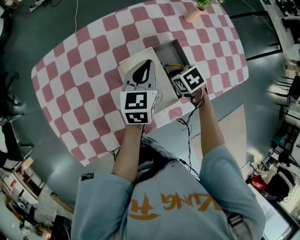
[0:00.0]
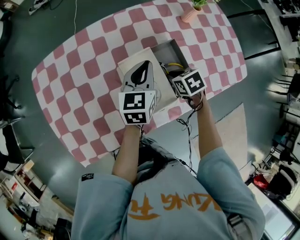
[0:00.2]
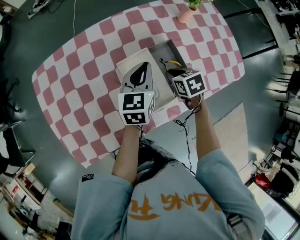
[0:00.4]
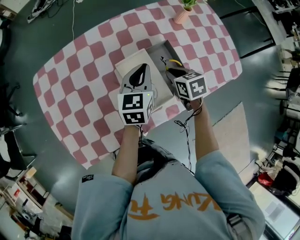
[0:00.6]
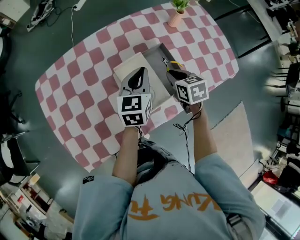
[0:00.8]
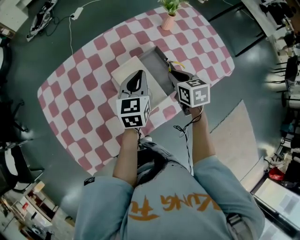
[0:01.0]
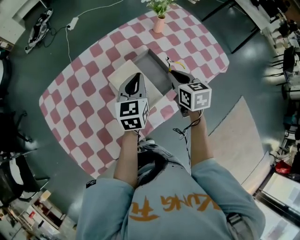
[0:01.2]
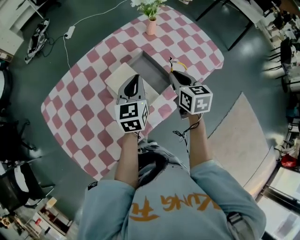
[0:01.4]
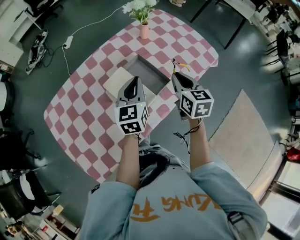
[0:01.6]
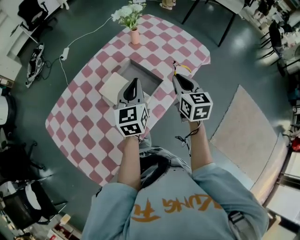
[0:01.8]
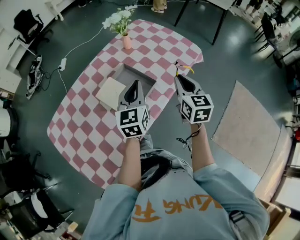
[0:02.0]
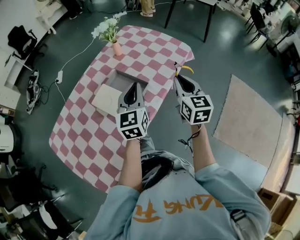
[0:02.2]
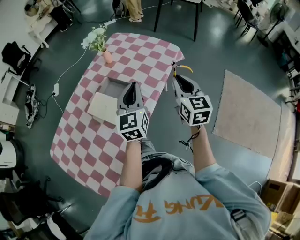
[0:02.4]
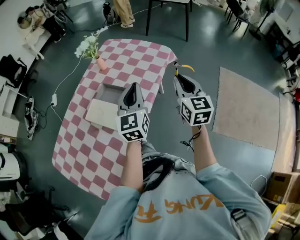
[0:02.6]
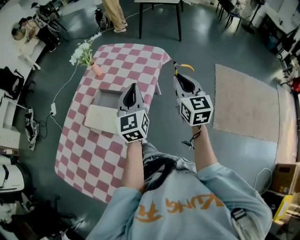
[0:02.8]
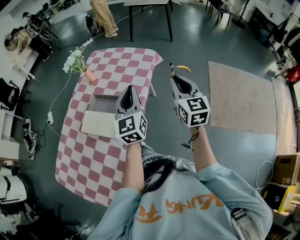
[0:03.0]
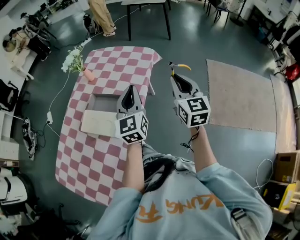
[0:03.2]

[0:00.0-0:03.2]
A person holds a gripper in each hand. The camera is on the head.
0:00.0 to 0:01.6: The right gripper goes some 20 cm upward, and points its fingers some 40 degrees further upward; the left gripper changes place by approximately 15 cm.
0:01.6 to 0:03.2: The right gripper changes place by about 30 cm, and changes its angle by about 40 degrees. The left gripper shifts by some 25 cm, and turns by about 30 degrees.

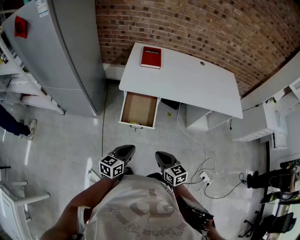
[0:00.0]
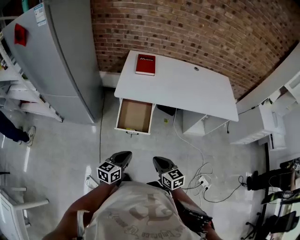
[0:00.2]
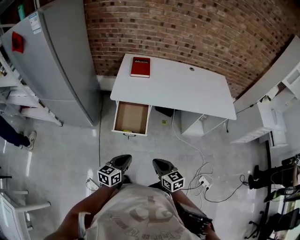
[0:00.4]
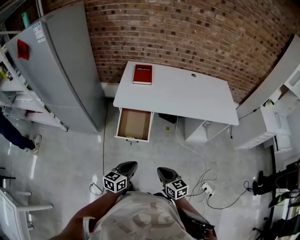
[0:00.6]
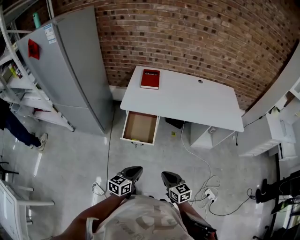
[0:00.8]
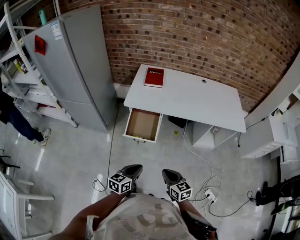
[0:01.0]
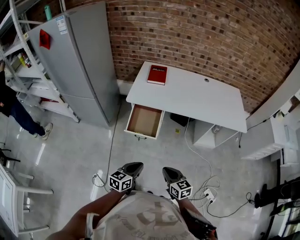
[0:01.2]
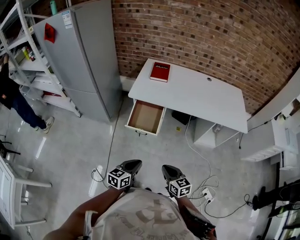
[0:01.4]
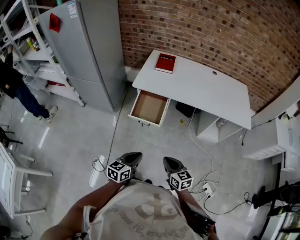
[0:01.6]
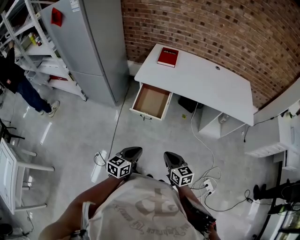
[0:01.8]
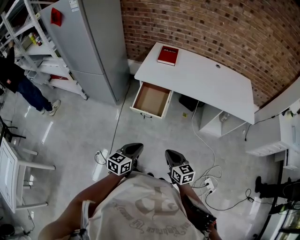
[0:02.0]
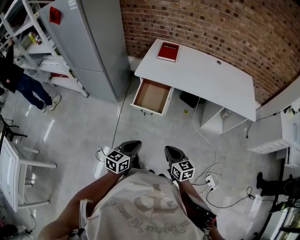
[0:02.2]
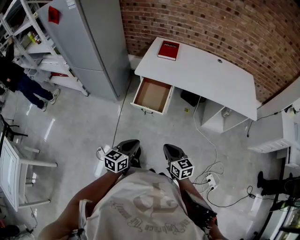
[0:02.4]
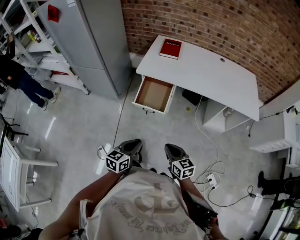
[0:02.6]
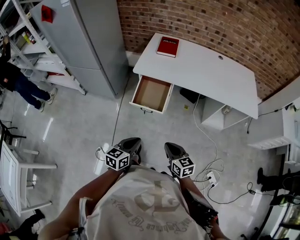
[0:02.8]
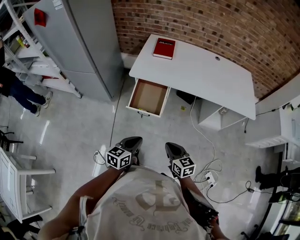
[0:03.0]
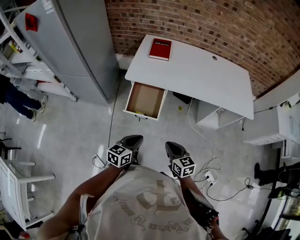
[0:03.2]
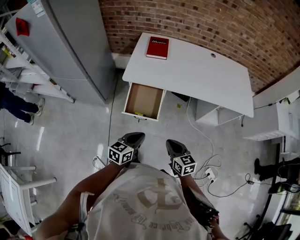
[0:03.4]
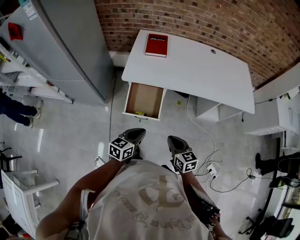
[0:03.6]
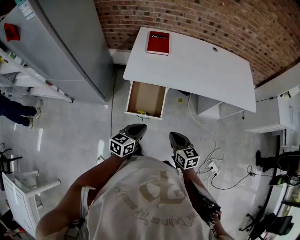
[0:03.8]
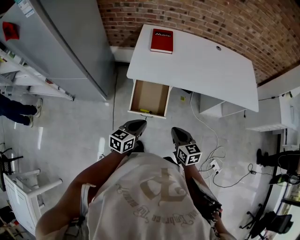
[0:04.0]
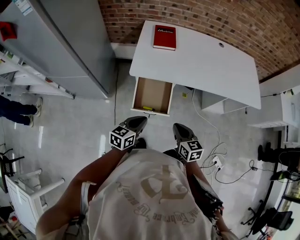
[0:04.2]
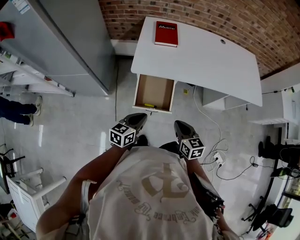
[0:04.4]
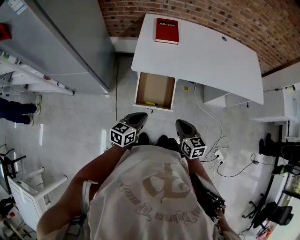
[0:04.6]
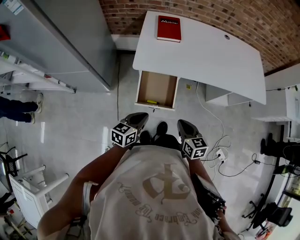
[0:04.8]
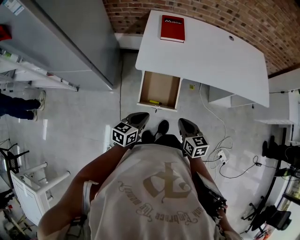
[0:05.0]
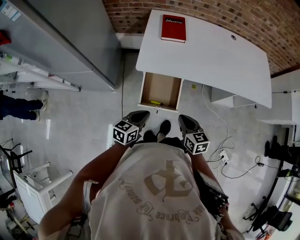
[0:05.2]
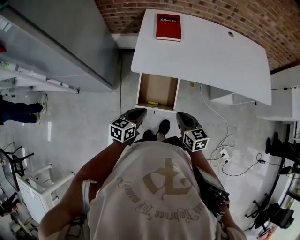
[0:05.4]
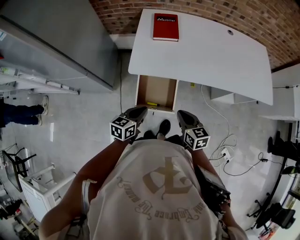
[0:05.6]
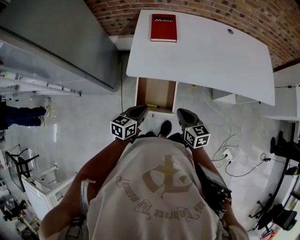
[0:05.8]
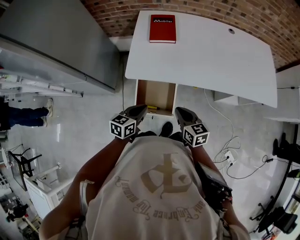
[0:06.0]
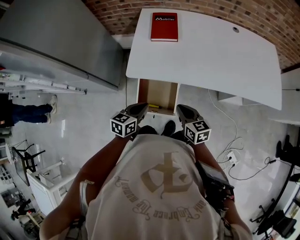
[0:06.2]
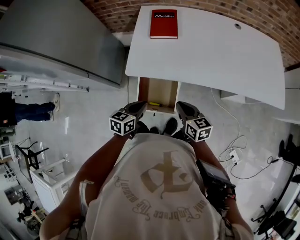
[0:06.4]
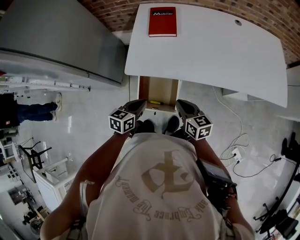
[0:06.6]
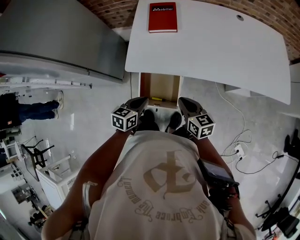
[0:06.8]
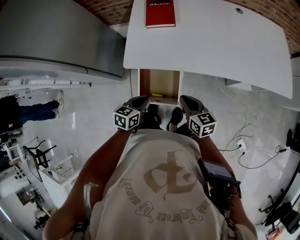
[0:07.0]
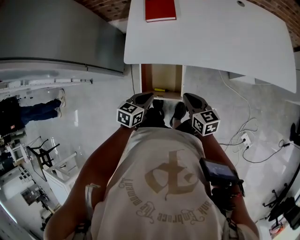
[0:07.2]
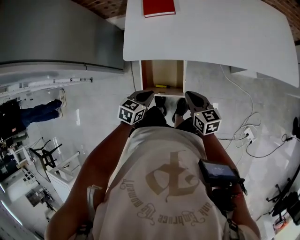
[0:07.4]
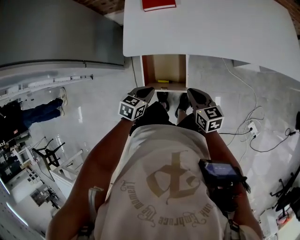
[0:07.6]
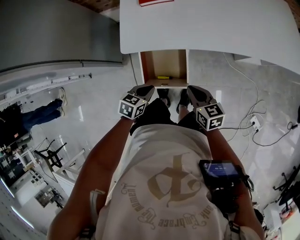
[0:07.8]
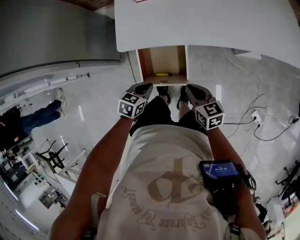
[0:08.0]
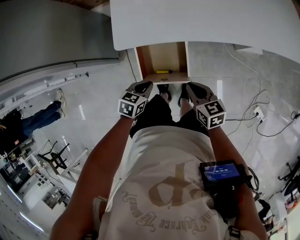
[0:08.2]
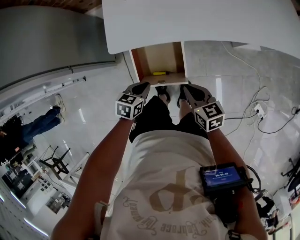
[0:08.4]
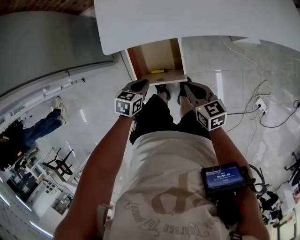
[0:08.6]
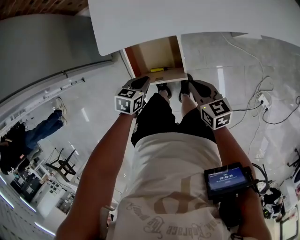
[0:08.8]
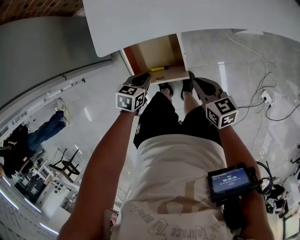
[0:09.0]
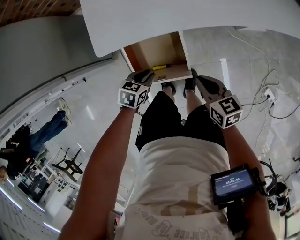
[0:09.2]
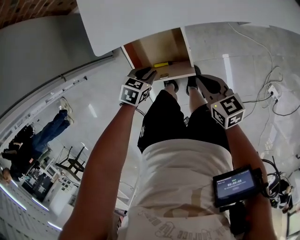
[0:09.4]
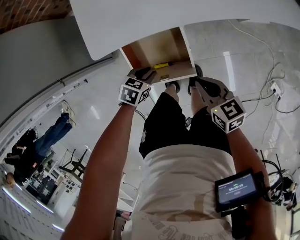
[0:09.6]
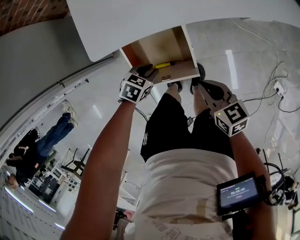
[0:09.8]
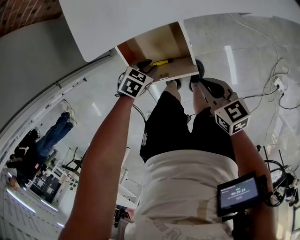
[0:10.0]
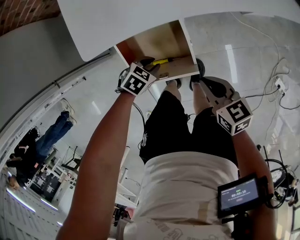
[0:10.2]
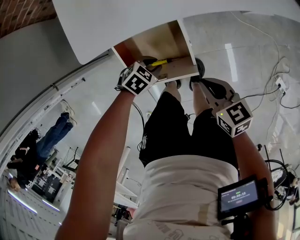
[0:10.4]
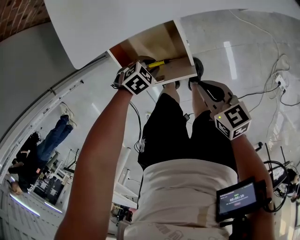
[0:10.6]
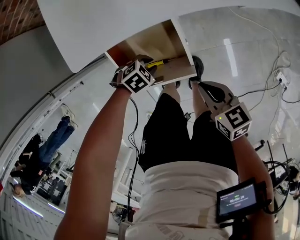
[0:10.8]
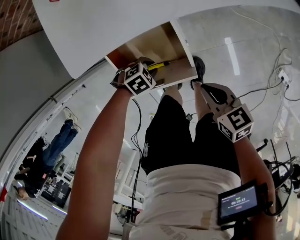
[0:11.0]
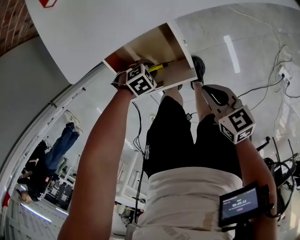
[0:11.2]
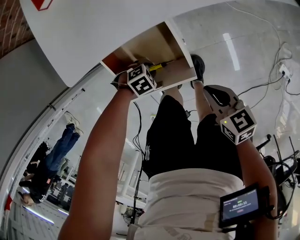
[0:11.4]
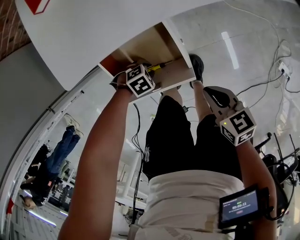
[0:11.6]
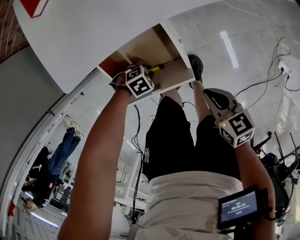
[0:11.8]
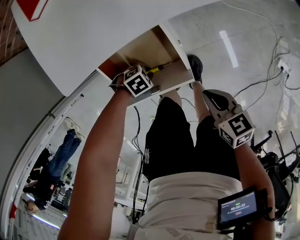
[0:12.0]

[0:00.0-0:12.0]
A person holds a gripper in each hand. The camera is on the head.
0:00.0 to 0:01.6: The right gripper goes about 15 cm to the right and backward, while the left gripper heads backward and to the right, covering about 15 cm.
0:01.6 to 0:03.0: Both grippers move forward, some 5 cm.
0:03.0 to 0:04.4: Both grippers travel together forward and to the left, approximately 20 cm.
0:04.4 to 0:06.0: Both grippers travel together forward, about 15 cm.
0:06.0 to 0:07.6: Both grippers move downward, about 10 cm. The left gripper changes its angle by approximately 20 degrees.
0:07.6 to 0:09.0: The grippers both shift downward by some 10 cm.
0:09.0 to 0:10.4: The right gripper changes place by about 5 cm; the left gripper goes some 10 cm downward, and changes its angle by some 40 degrees.
0:10.4 to 0:12.0: The right gripper moves approximately 5 cm. The left gripper shifts some 10 cm downward, and turns by about 30 degrees.

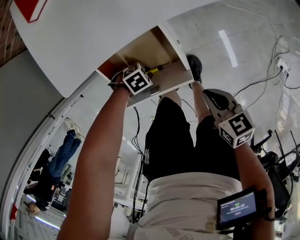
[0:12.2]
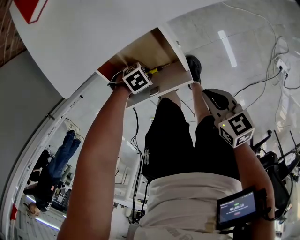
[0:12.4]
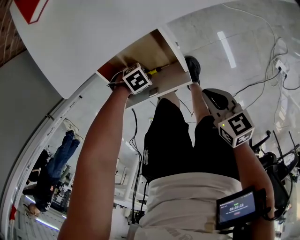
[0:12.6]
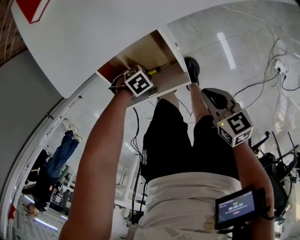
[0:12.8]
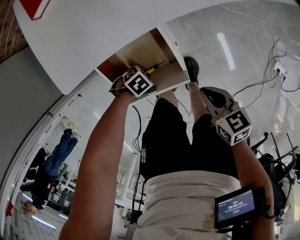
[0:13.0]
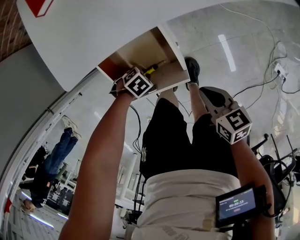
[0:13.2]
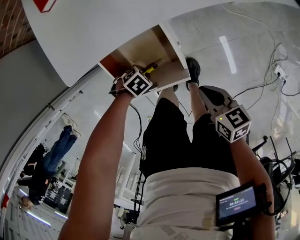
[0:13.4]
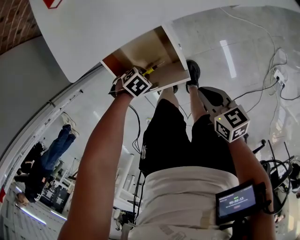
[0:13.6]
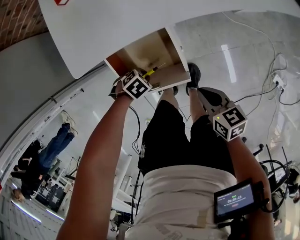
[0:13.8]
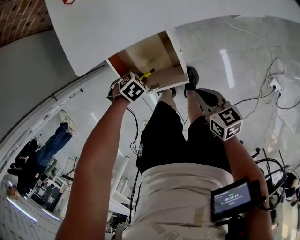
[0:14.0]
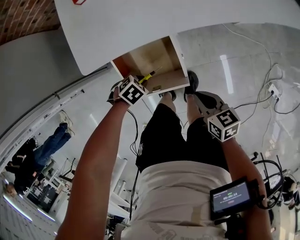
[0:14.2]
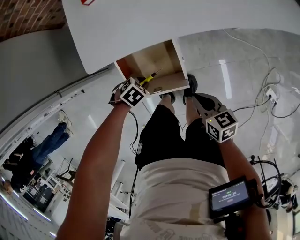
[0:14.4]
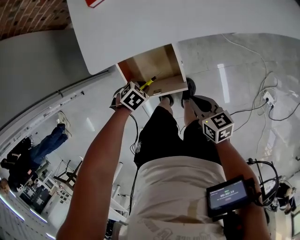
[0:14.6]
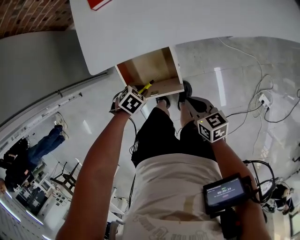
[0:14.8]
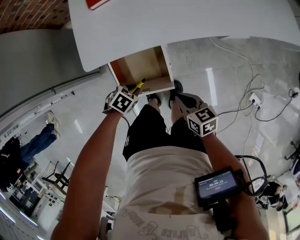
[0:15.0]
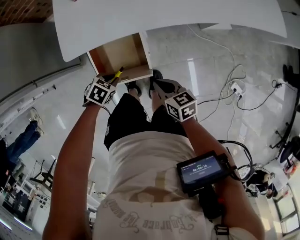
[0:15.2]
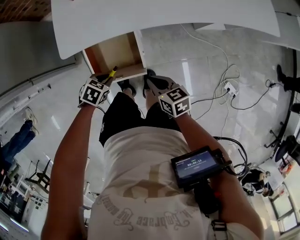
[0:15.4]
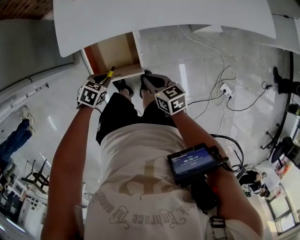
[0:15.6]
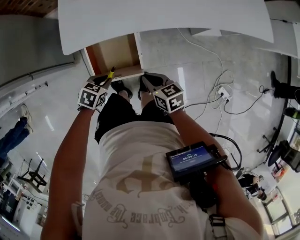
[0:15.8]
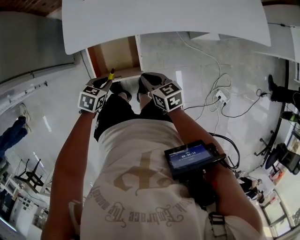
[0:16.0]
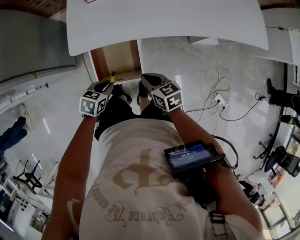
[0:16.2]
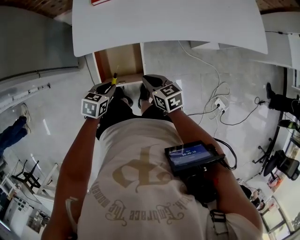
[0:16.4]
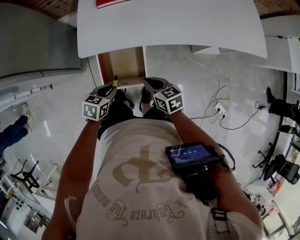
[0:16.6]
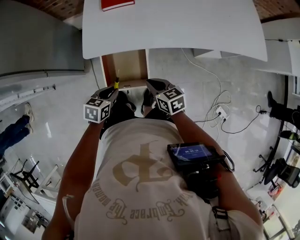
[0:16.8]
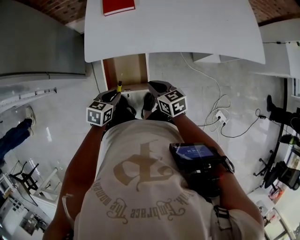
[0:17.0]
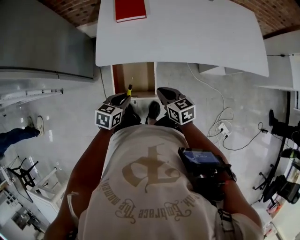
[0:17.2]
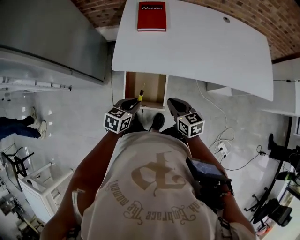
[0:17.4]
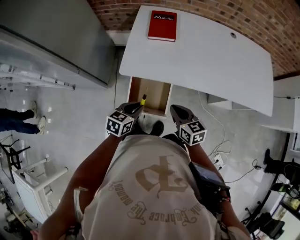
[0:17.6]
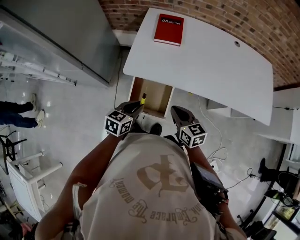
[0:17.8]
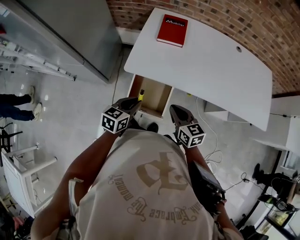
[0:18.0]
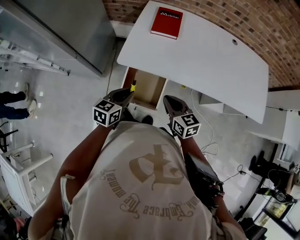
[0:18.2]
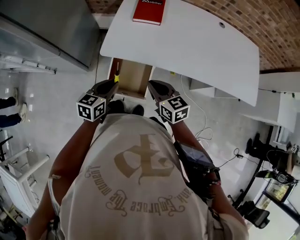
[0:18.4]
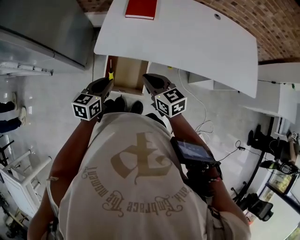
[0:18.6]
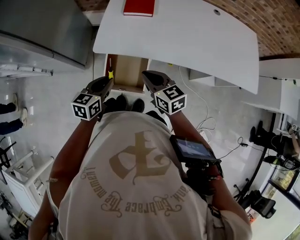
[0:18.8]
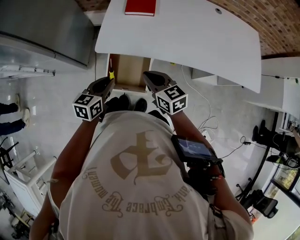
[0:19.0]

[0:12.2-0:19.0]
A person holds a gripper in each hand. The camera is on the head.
0:12.2 to 0:13.6: The grippers make only small movements.
0:13.6 to 0:15.0: The right gripper ends up approximately 5 cm from where it was. Meanwhile the left gripper moves upward, approximately 10 cm, and rotates about 20 degrees.
0:15.0 to 0:16.2: The right gripper goes roughly 5 cm upward. The left gripper travels upward by approximately 10 cm, and rotates about 30 degrees.
0:16.2 to 0:17.6: The two grippers go some 15 cm upward. The left gripper turns by about 20 degrees.
0:17.6 to 0:19.0: The grippers stay close to where they were, moving slightly.

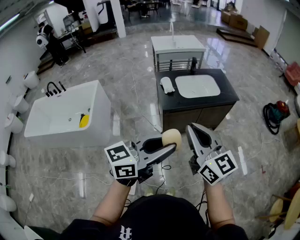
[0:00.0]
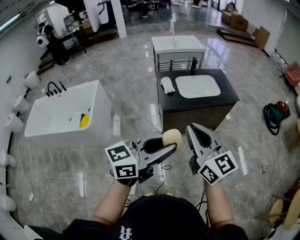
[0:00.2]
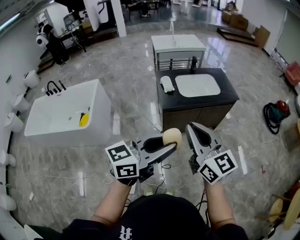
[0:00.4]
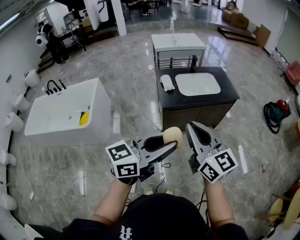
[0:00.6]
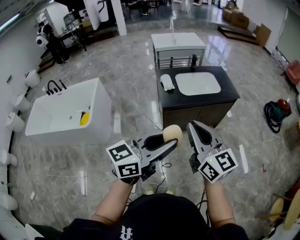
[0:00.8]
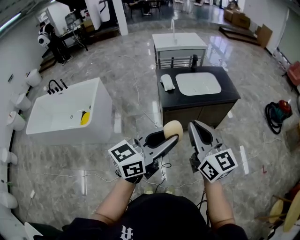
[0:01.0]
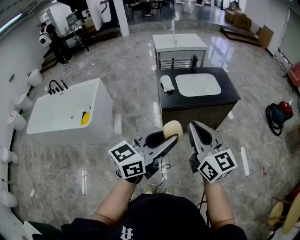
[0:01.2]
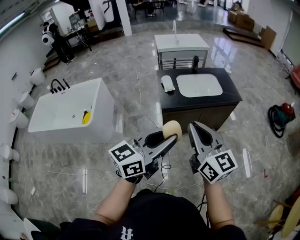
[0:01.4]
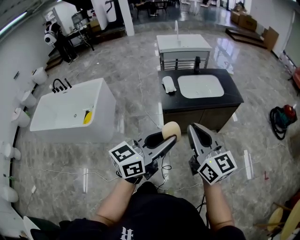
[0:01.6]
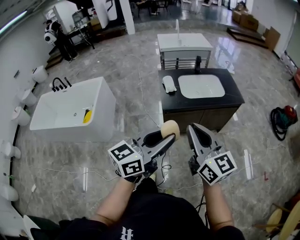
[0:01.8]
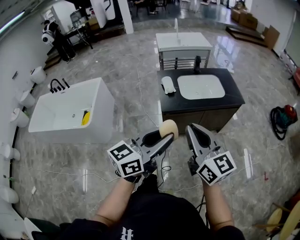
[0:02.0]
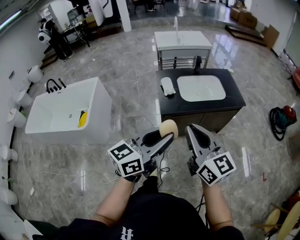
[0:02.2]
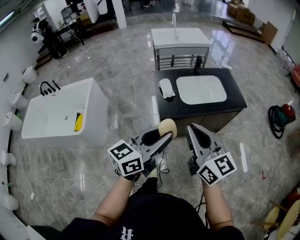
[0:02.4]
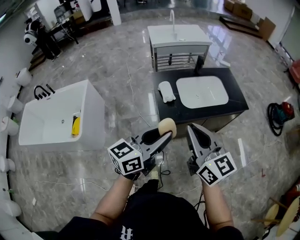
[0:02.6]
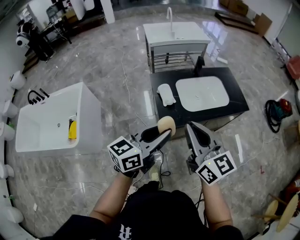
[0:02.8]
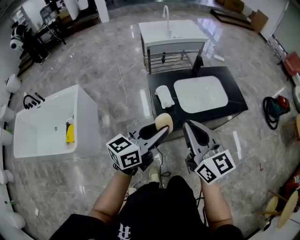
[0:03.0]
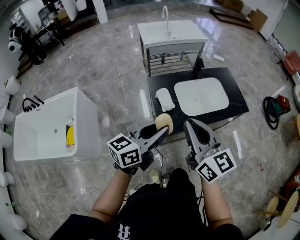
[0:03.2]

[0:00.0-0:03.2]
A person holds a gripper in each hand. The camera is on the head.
0:00.0 to 0:01.6: The left gripper travels forward by roughly 5 cm. The right gripper shifts some 5 cm to the right.
0:01.6 to 0:03.2: Both grippers move forward and to the left, approximately 35 cm.
